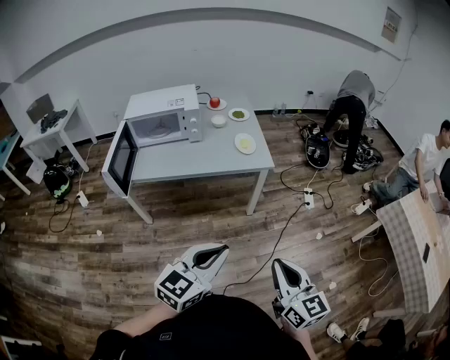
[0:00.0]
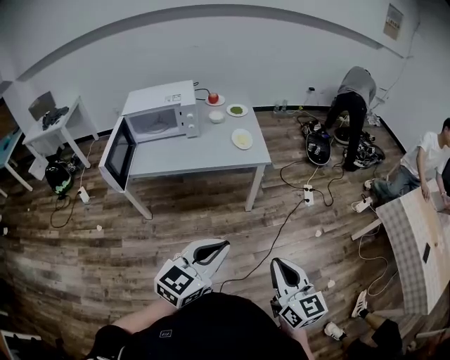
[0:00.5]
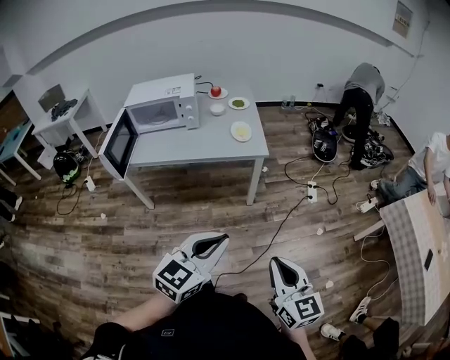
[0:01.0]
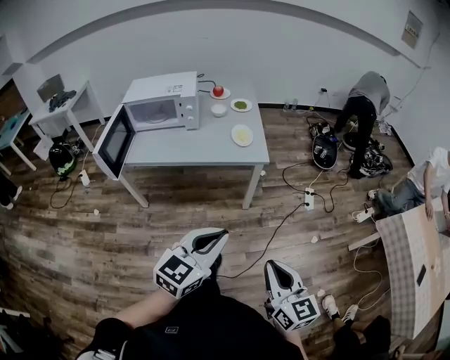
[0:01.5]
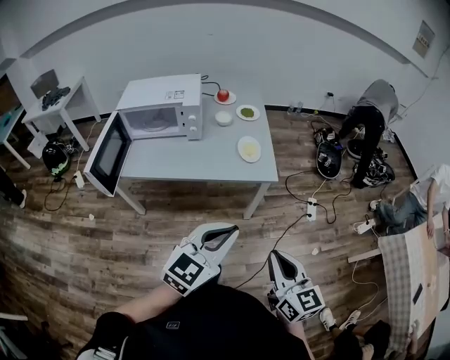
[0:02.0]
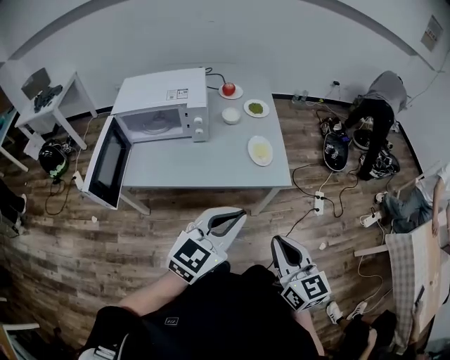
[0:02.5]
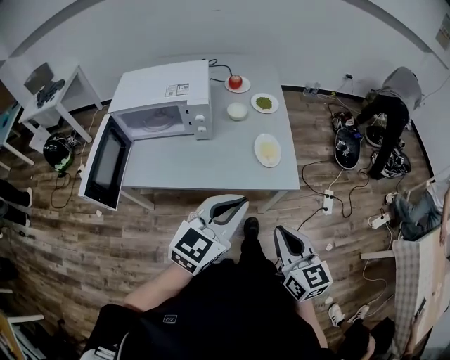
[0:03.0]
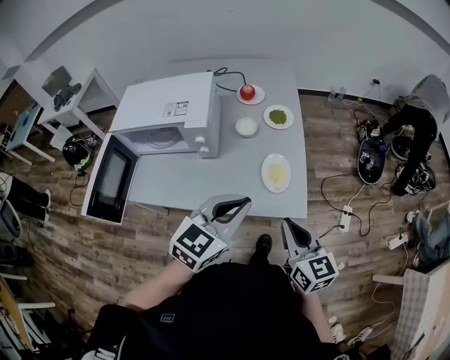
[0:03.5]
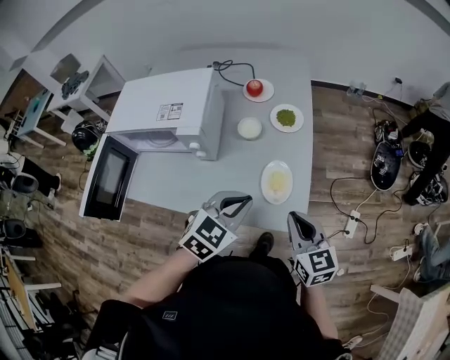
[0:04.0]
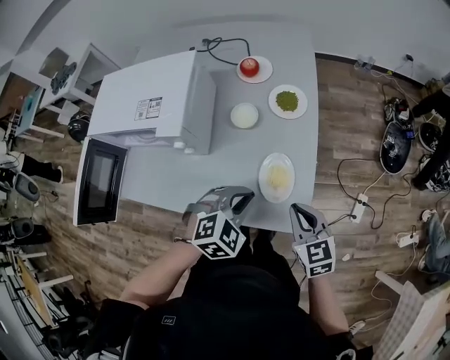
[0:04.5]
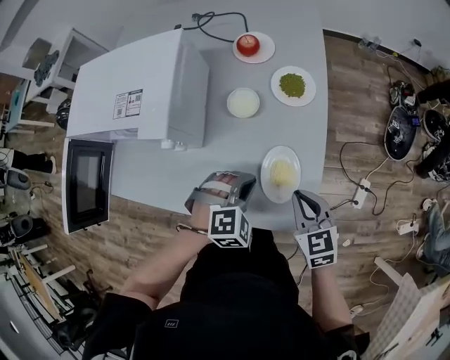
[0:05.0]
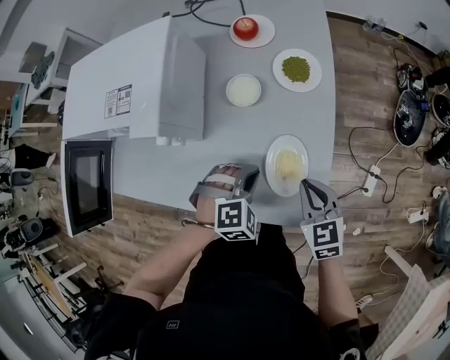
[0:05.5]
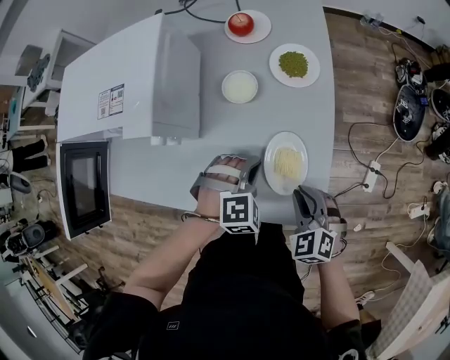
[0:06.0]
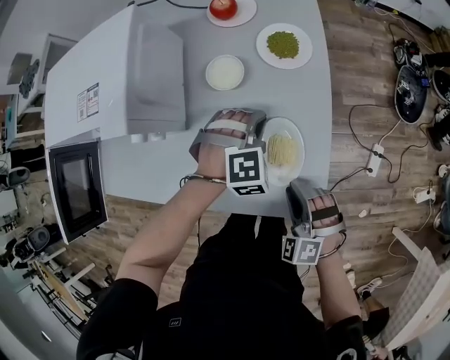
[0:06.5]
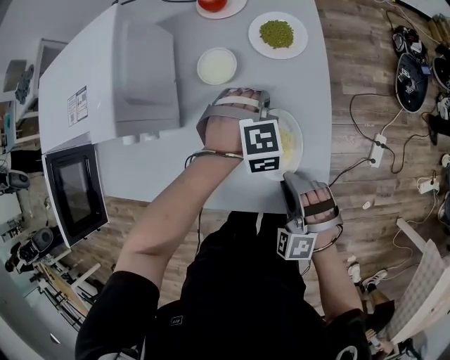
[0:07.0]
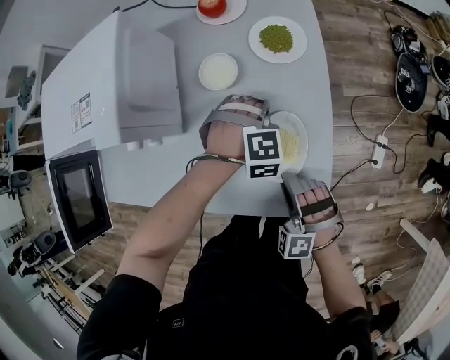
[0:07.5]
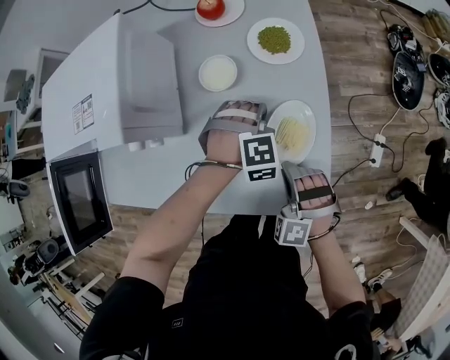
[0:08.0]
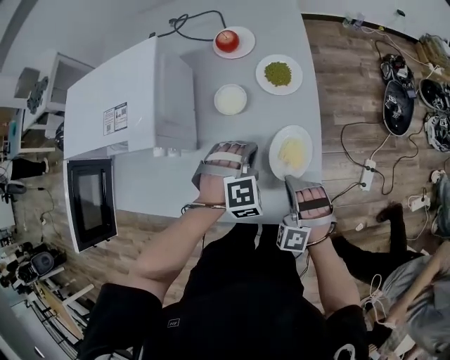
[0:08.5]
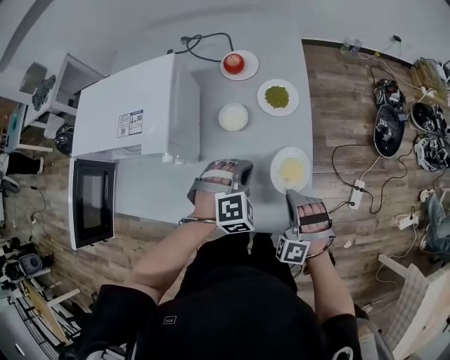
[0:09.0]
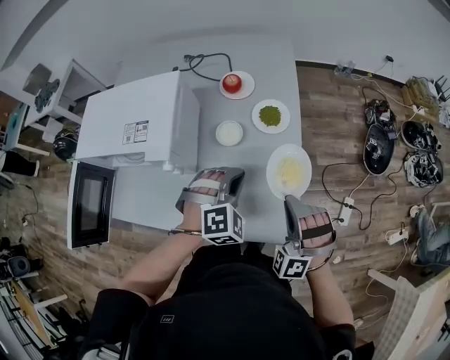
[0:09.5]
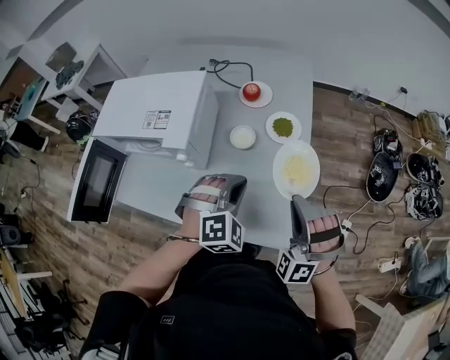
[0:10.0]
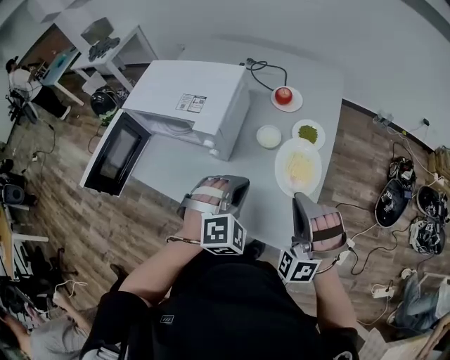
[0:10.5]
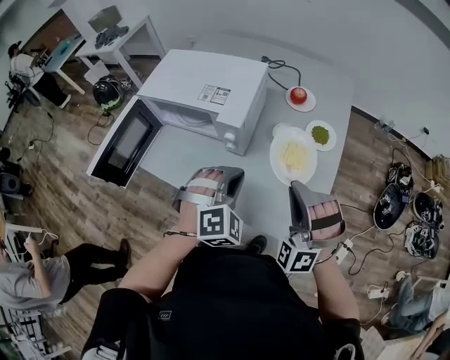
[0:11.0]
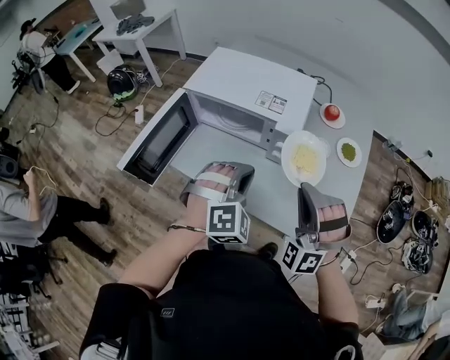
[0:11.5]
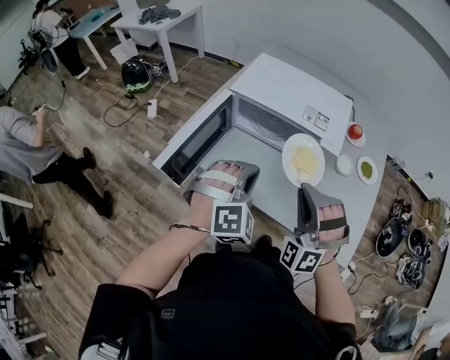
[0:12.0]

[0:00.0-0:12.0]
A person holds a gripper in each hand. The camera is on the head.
0:00.0 to 0:02.0: Both grippers move forward, roughly 20 cm.
0:02.0 to 0:04.0: The two grippers travel together, forward, approximately 40 cm. The left gripper swivels approximately 30 degrees.
0:04.0 to 0:06.0: The left gripper moves downward and forward, some 25 cm, and changes its angle by roughly 50 degrees, while the right gripper heads downward, covering roughly 20 cm, and rotates approximately 40 degrees.
0:06.0 to 0:08.0: The left gripper moves forward, approximately 10 cm. Meanwhile the right gripper shifts by about 5 cm, and turns by about 40 degrees.
0:08.0 to 0:10.0: The left gripper is displaced upward and backward by some 25 cm, and changes its angle by about 30 degrees, while the right gripper shifts some 25 cm upward, and swivels some 30 degrees.
0:10.0 to 0:12.0: The two grippers travel together, to the left, roughly 40 cm.

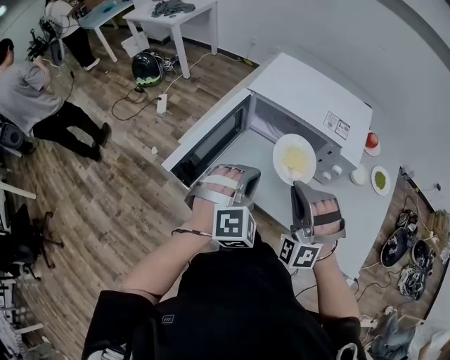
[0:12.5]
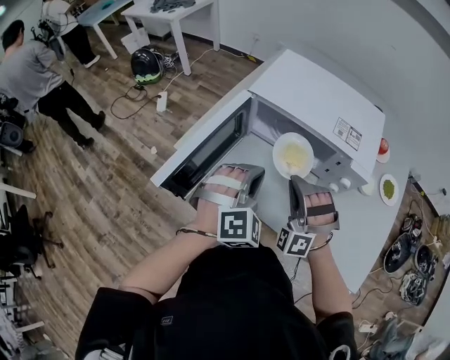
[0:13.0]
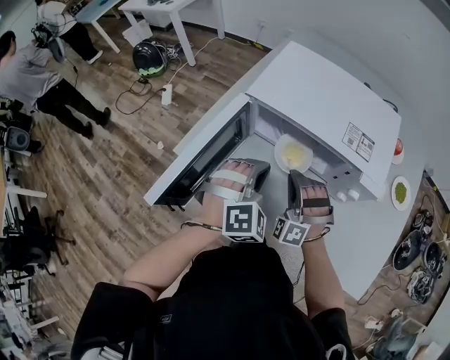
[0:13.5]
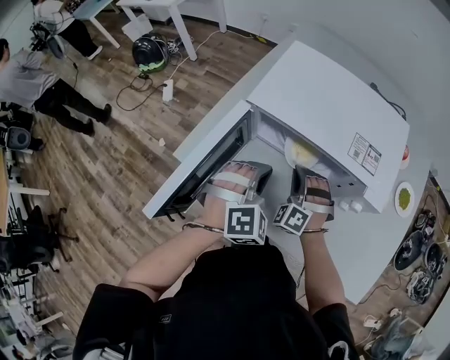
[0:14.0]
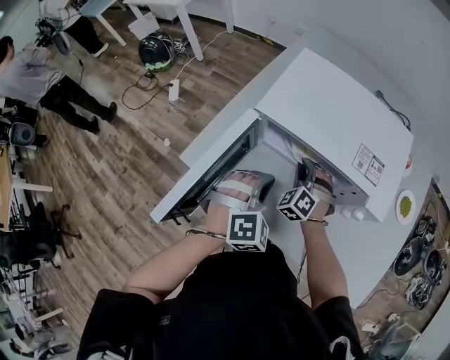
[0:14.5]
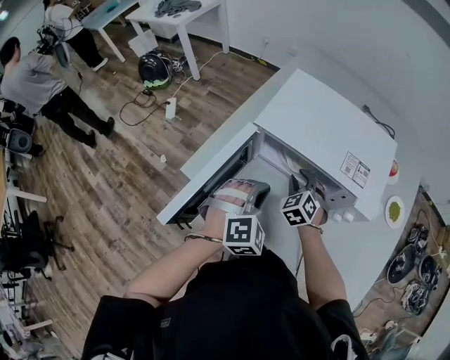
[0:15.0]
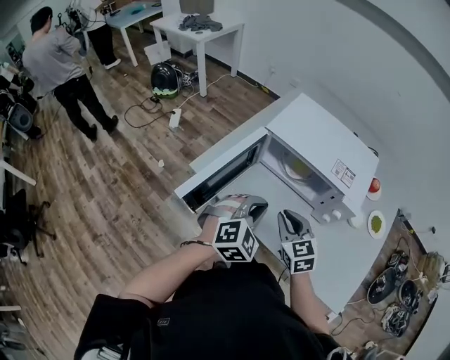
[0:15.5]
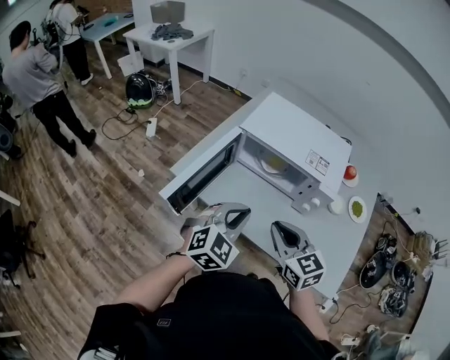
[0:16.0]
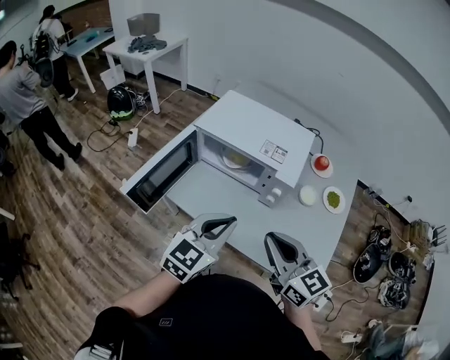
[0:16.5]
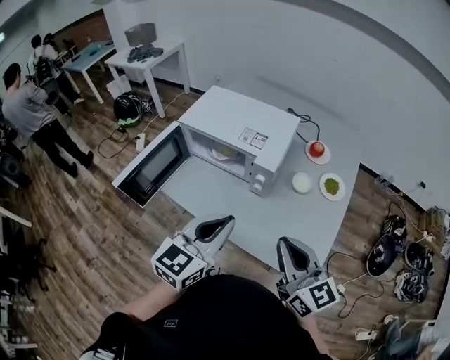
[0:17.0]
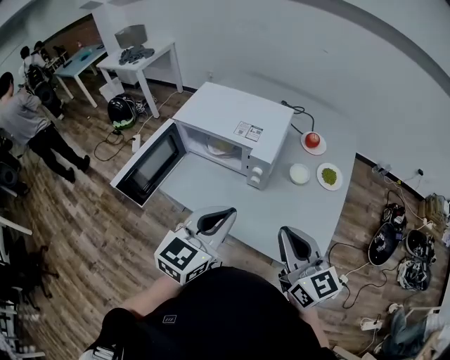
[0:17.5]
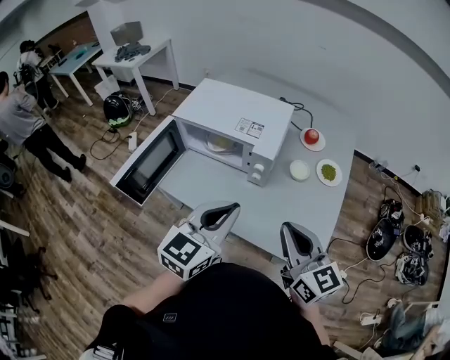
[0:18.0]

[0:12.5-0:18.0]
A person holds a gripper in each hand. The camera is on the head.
0:12.5 to 0:14.5: The left gripper goes roughly 15 cm forward and downward. The right gripper travels forward and downward by some 30 cm, and rotates roughly 40 degrees.
0:14.5 to 0:16.0: The left gripper goes about 20 cm backward and upward, and swivels roughly 30 degrees, while the right gripper heads backward and upward, covering roughly 35 cm, and changes its angle by approximately 60 degrees.
0:16.0 to 0:18.0: The right gripper goes some 25 cm to the right, and changes its angle by roughly 20 degrees; the left gripper travels to the right and upward by approximately 20 cm, and rotates some 30 degrees.

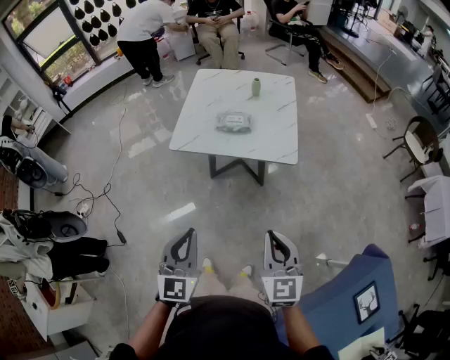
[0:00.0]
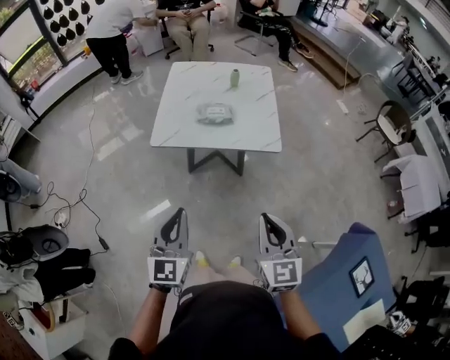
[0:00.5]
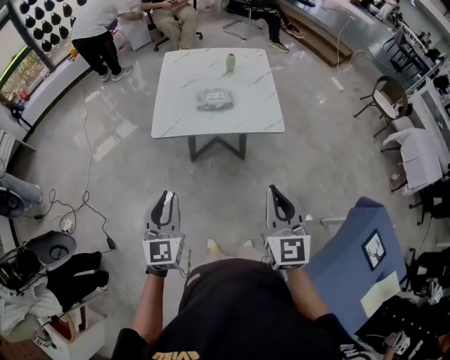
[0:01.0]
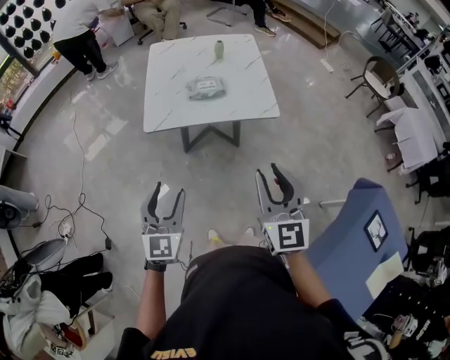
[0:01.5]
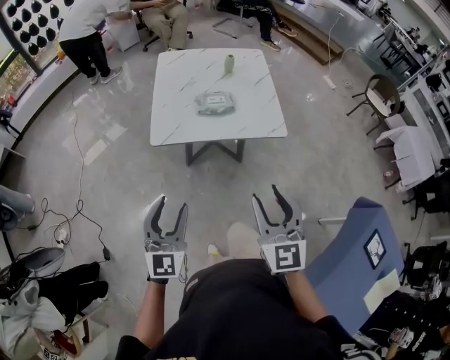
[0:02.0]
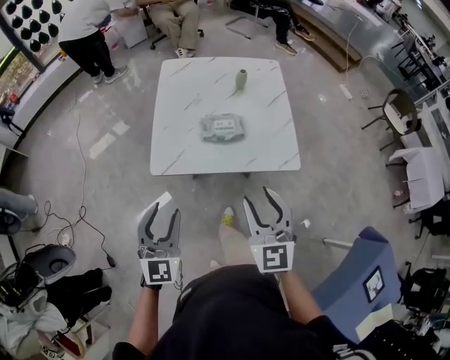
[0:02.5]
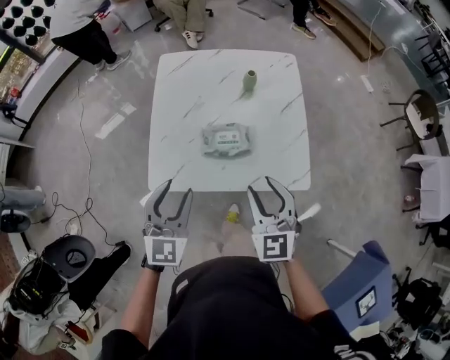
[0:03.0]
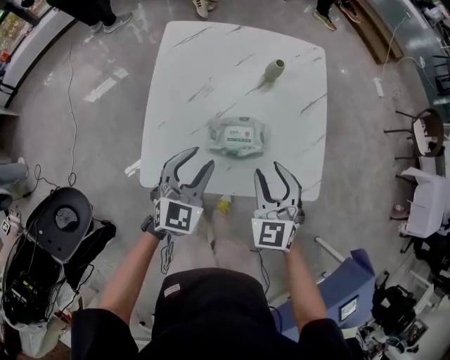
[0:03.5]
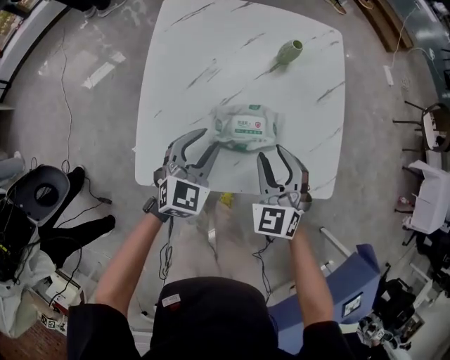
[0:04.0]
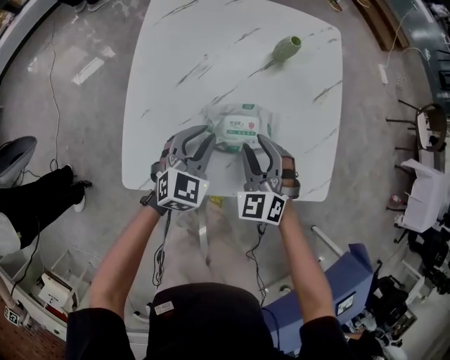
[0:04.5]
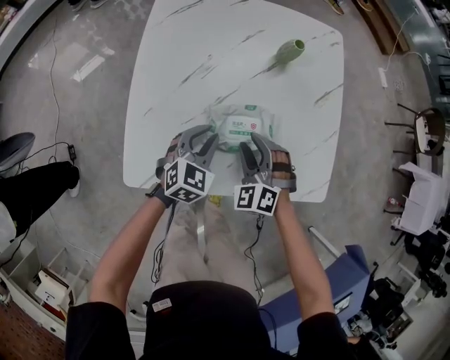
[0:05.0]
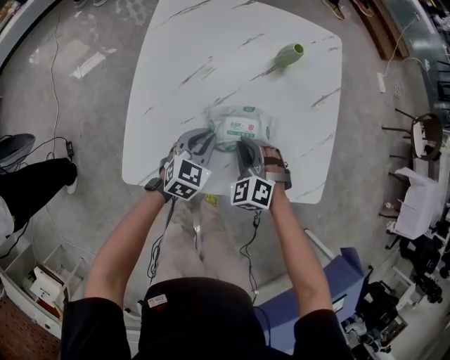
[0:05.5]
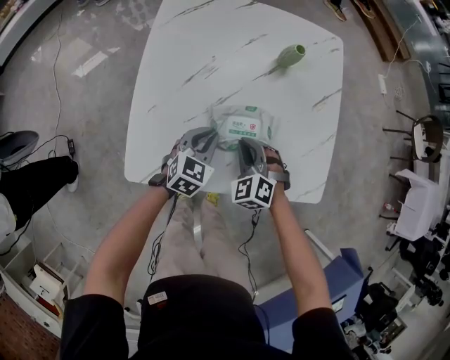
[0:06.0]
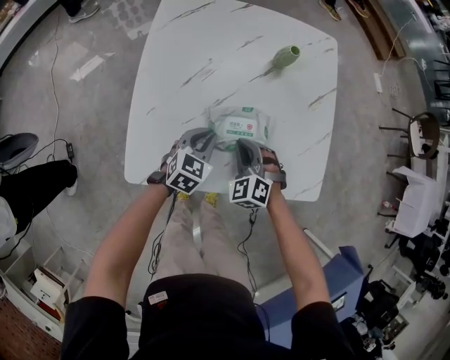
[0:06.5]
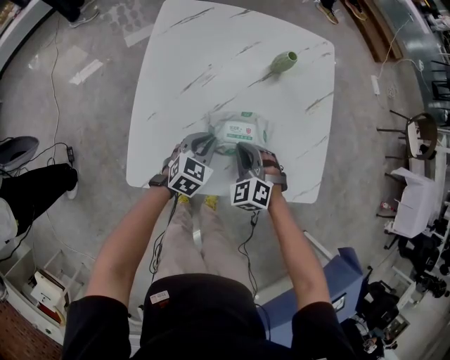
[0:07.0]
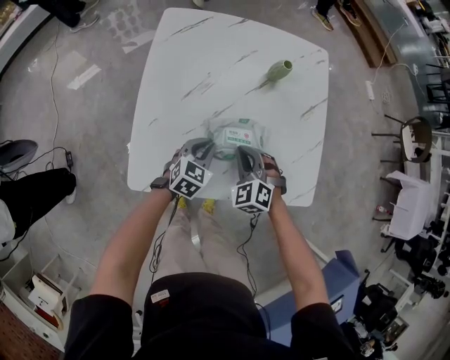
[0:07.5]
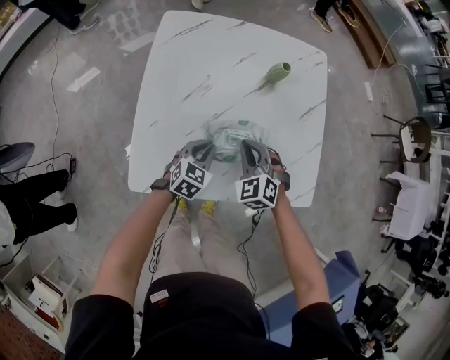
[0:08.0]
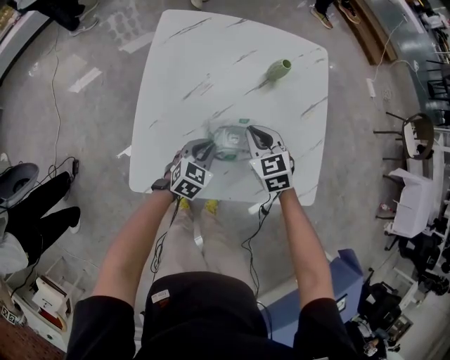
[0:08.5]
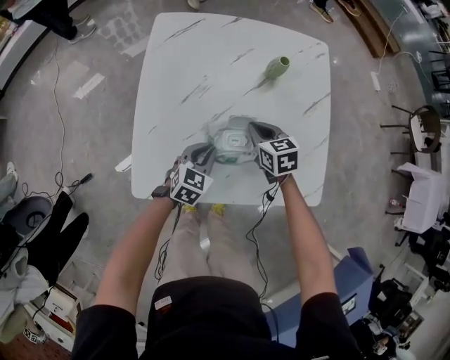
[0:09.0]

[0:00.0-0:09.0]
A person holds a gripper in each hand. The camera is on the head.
0:00.0 to 0:02.0: The two grippers go some 20 cm to the left and forward. The left gripper opens. Meanwhile the right gripper opens its fingers.
0:02.0 to 0:04.5: The two grippers travel together, forward, roughly 50 cm. The two grippers go roughly 30 cm downward. The right gripper turns by about 40 degrees. The left gripper changes its angle by roughly 30 degrees, and closes its fingers.
0:04.5 to 0:07.0: The two grippers go some 5 cm downward. The right gripper closes.
0:07.0 to 0:09.0: The right gripper goes approximately 10 cm forward, and rolls clockwise, seen from behind, by approximately 50 degrees.
